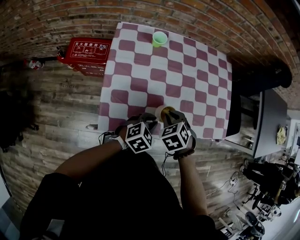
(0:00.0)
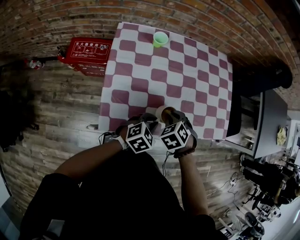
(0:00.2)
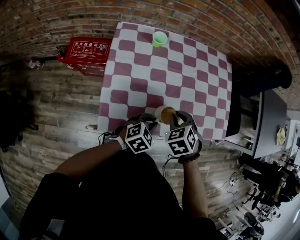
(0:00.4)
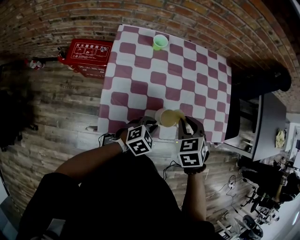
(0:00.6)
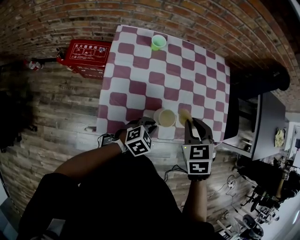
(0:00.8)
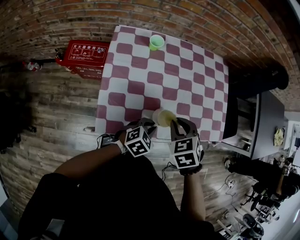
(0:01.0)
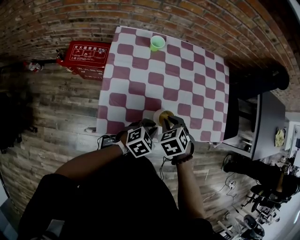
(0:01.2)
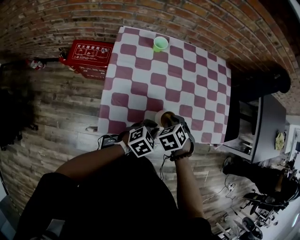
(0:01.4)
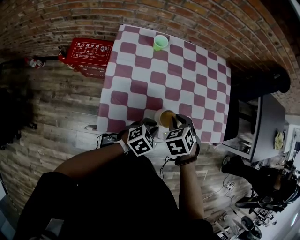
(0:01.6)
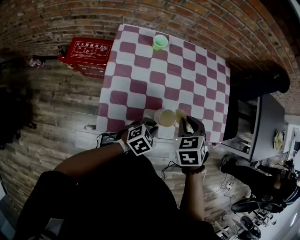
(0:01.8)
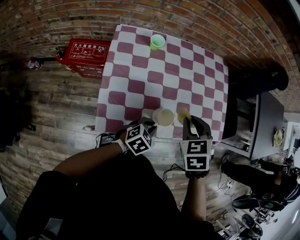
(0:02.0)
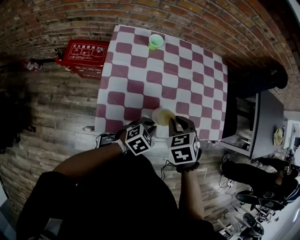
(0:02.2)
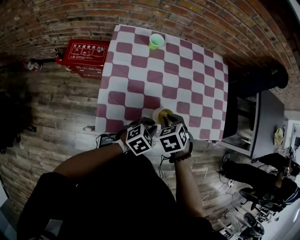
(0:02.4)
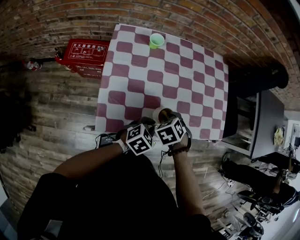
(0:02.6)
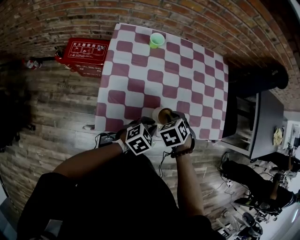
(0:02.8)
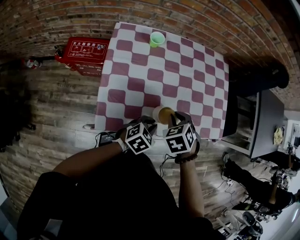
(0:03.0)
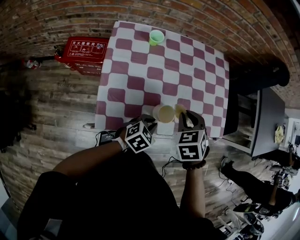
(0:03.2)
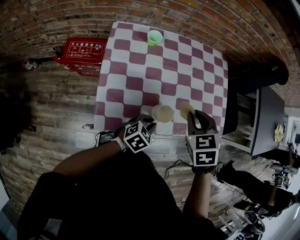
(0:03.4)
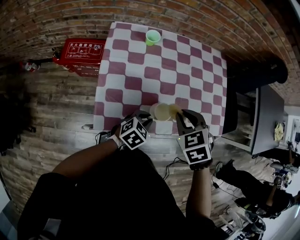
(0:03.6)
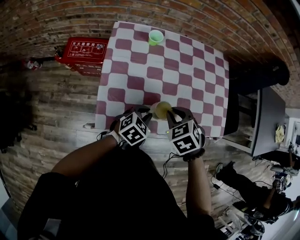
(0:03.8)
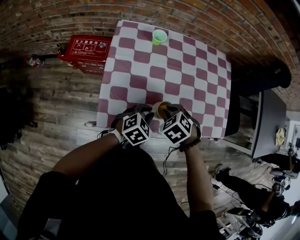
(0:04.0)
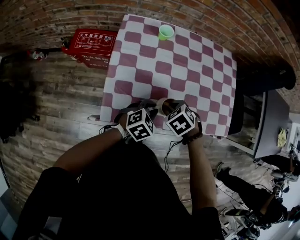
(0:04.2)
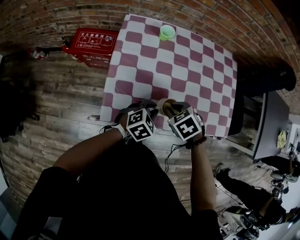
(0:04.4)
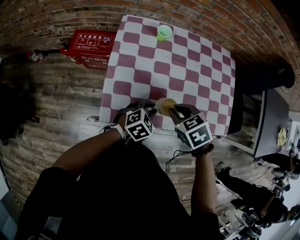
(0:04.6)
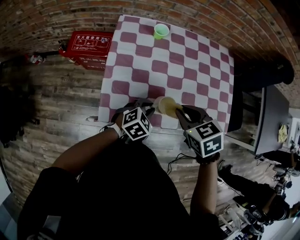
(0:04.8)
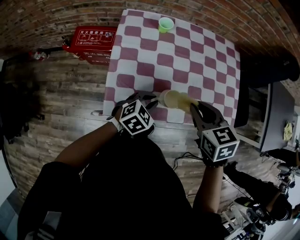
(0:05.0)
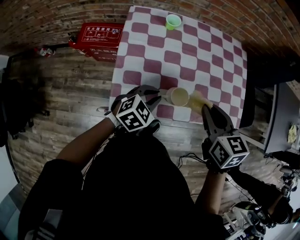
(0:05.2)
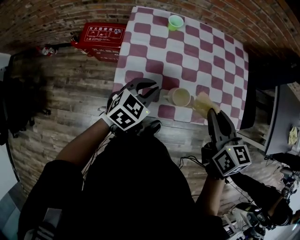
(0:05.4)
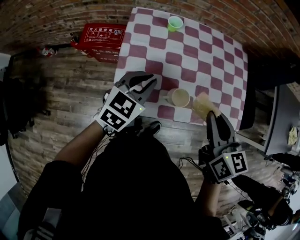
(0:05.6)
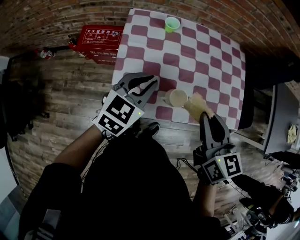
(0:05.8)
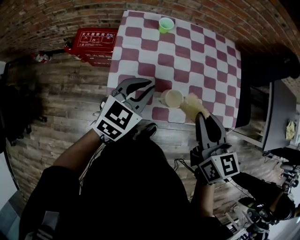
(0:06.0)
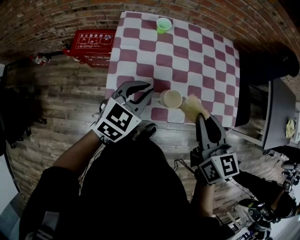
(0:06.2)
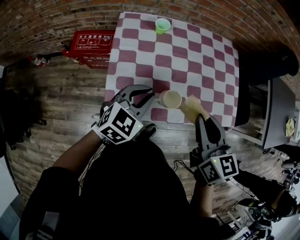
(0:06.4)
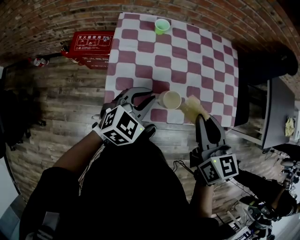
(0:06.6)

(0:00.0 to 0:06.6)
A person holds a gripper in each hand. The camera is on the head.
0:00.0 - 0:01.6: The right gripper swings up and down, about 15 cm each way, with 2 reversals.
0:01.6 - 0:03.2: The right gripper goes up and down, about 15 cm each way, reversing 2 times.
0:03.2 - 0:05.0: The left gripper ends up about 5 cm from where it was. The right gripper goes up and down, approximately 15 cm each way, reversing 2 times, and turns by some 30 degrees.
0:05.0 - 0:06.6: The right gripper goes about 5 cm upward, and swivels roughly 30 degrees; the left gripper moves upward, about 10 cm.

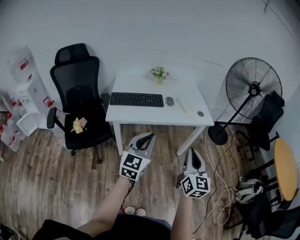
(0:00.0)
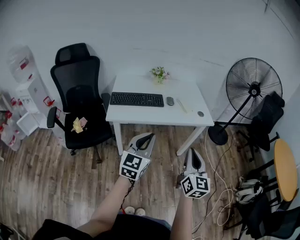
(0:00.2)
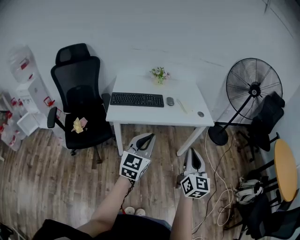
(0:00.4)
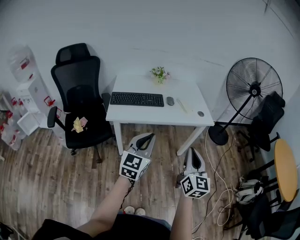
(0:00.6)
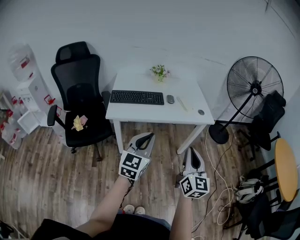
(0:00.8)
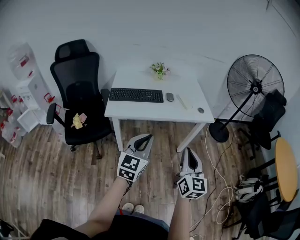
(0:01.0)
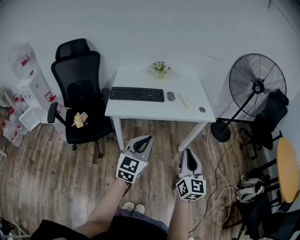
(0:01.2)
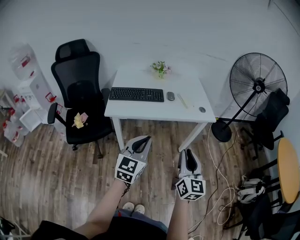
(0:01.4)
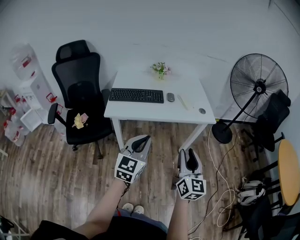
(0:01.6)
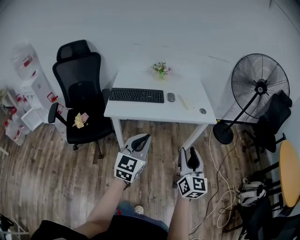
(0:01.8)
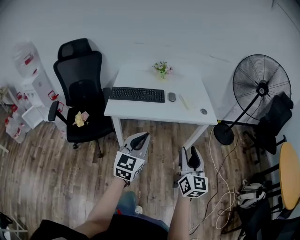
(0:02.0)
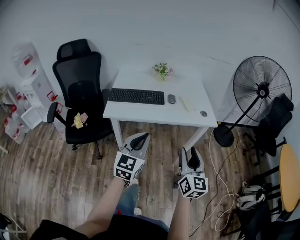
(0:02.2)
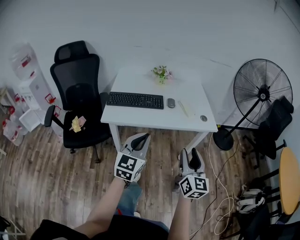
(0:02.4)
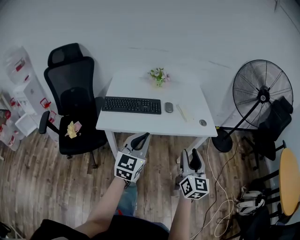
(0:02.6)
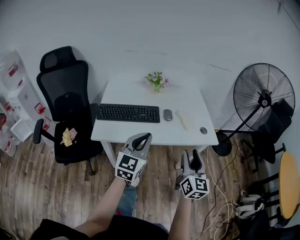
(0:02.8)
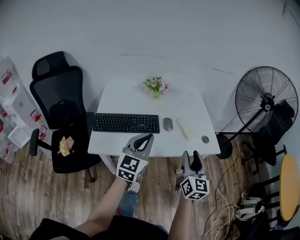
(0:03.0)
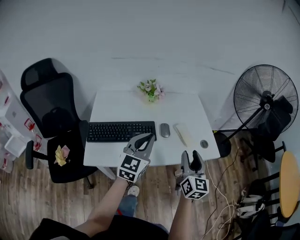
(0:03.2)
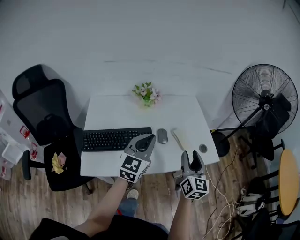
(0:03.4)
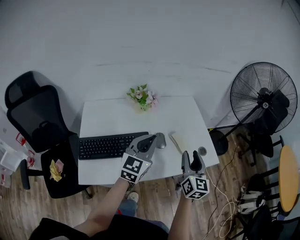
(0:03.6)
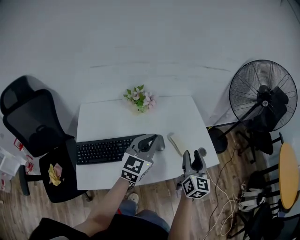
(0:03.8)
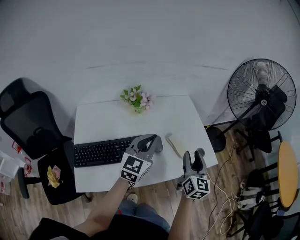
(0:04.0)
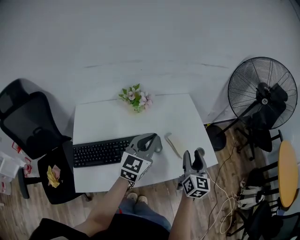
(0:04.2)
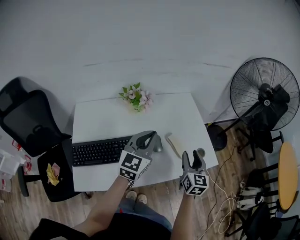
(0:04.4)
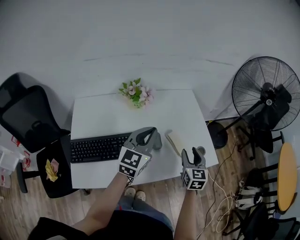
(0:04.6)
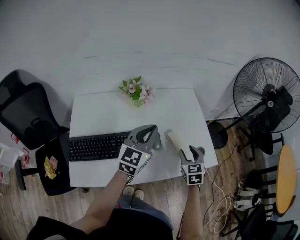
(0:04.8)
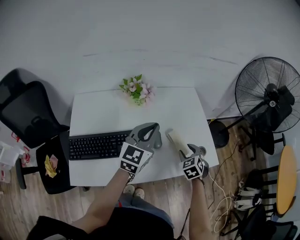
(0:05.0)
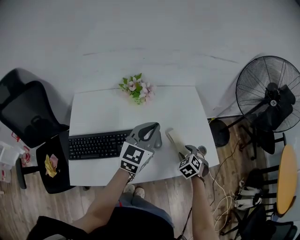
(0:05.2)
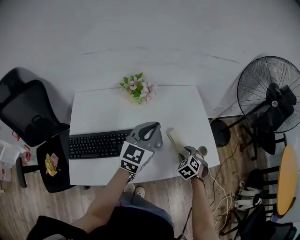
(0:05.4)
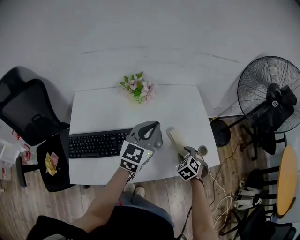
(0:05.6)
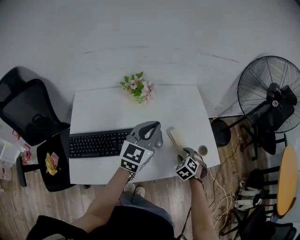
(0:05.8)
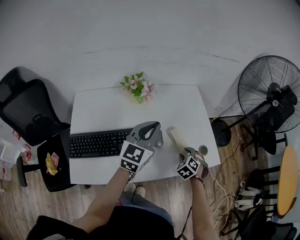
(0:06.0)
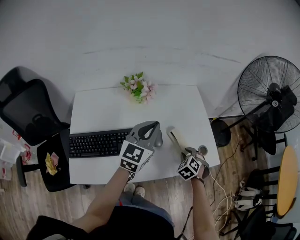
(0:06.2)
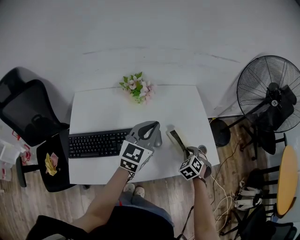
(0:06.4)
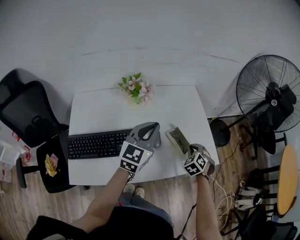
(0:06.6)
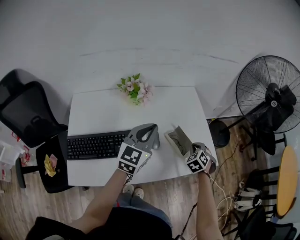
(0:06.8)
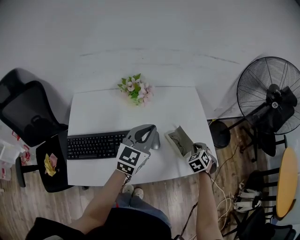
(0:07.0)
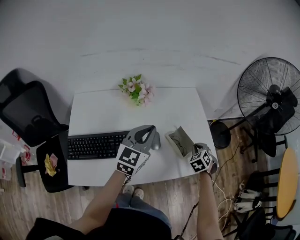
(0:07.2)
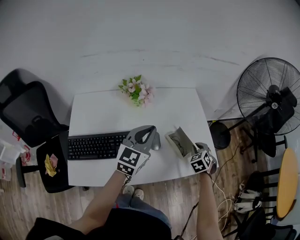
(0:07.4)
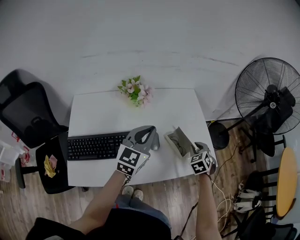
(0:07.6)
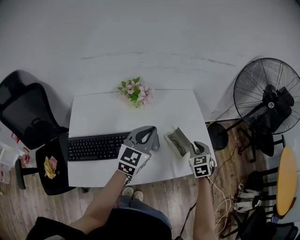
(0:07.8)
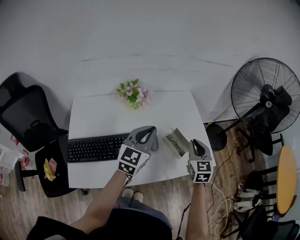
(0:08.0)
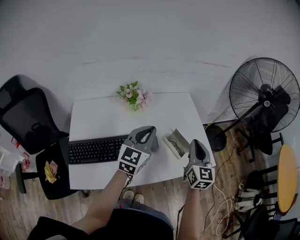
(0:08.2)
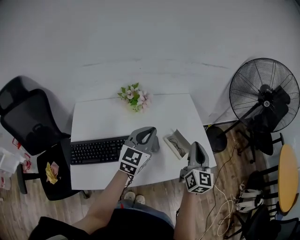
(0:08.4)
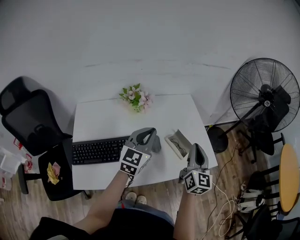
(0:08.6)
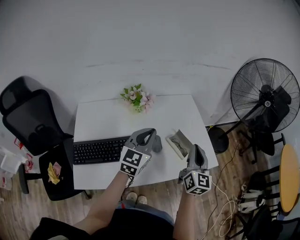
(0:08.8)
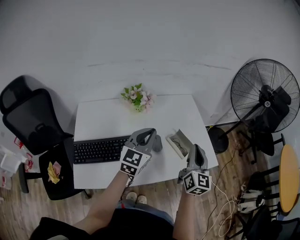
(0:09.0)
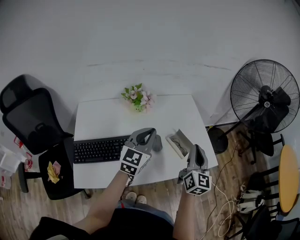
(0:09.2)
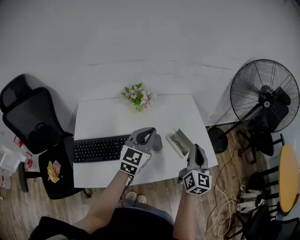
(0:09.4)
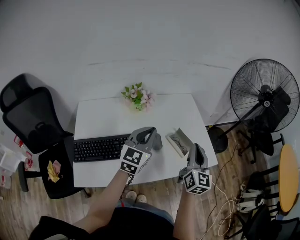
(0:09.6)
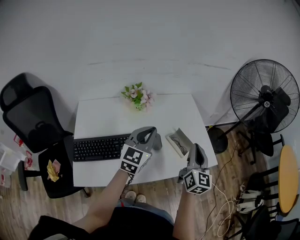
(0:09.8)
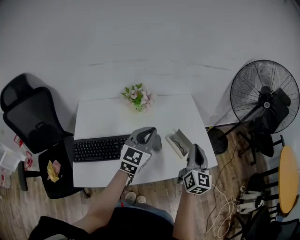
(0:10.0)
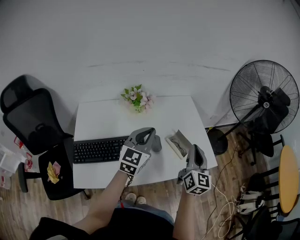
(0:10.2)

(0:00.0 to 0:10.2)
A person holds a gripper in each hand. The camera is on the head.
0:00.0 - 0:01.4: The grippers make only small movements.
0:01.4 - 0:03.0: Both grippers travel together forward, roughly 30 cm. The right gripper opens up.
0:03.0 - 0:04.4: The grippers both shift forward by some 25 cm.
0:04.4 - 0:05.8: The right gripper shifts approximately 15 cm downward, and points its fingers approximately 50 degrees further downward.
0:05.8 - 0:07.2: The right gripper travels forward and to the right by roughly 10 cm, and closes its fingers.
0:07.2 - 0:08.8: The right gripper goes about 20 cm upward and backward, and angles its fingers upward, by some 50 degrees.
0:08.8 - 0:10.2: Neither gripper changes place.

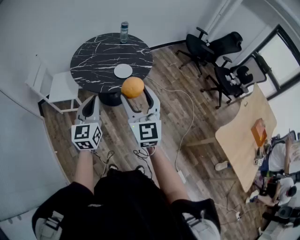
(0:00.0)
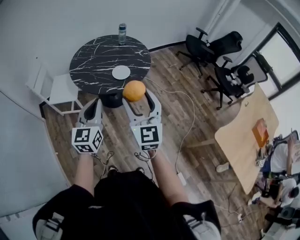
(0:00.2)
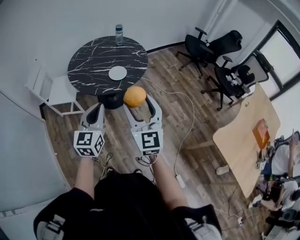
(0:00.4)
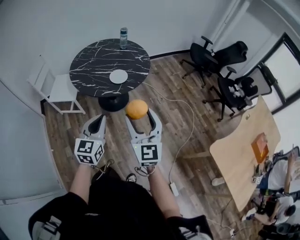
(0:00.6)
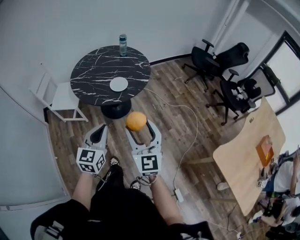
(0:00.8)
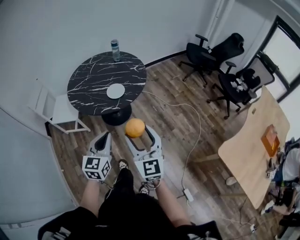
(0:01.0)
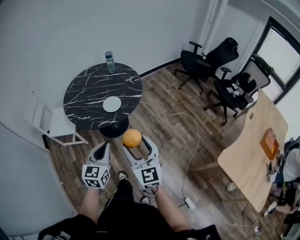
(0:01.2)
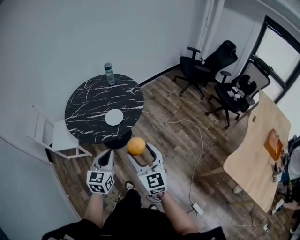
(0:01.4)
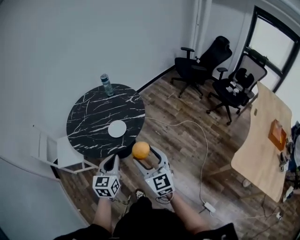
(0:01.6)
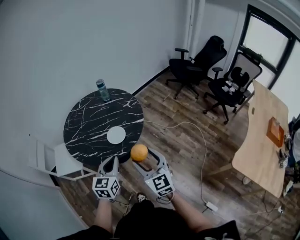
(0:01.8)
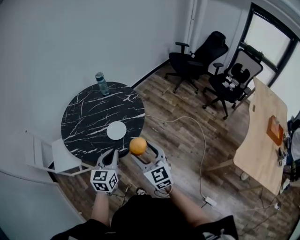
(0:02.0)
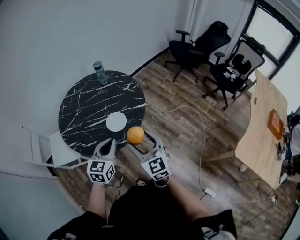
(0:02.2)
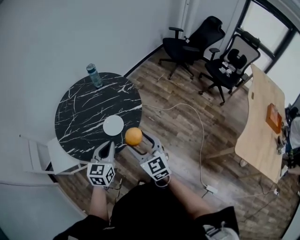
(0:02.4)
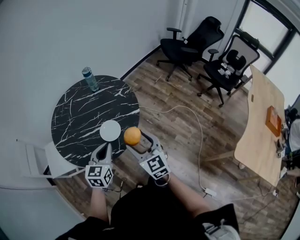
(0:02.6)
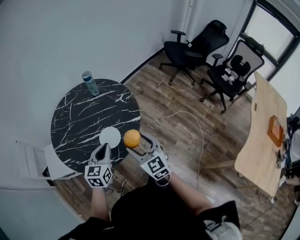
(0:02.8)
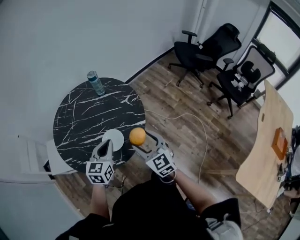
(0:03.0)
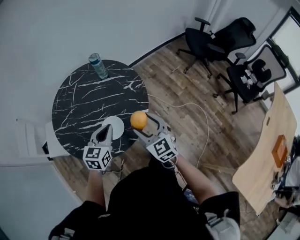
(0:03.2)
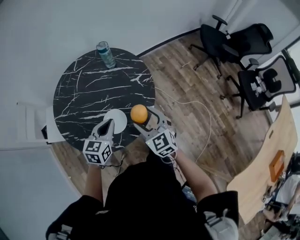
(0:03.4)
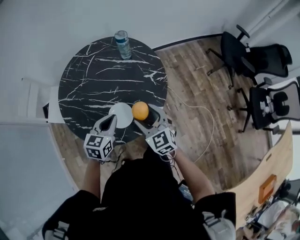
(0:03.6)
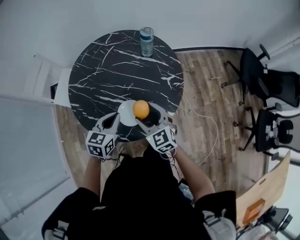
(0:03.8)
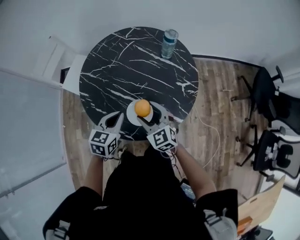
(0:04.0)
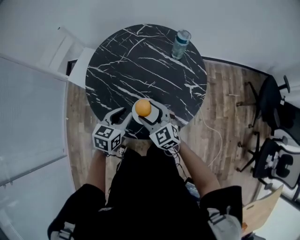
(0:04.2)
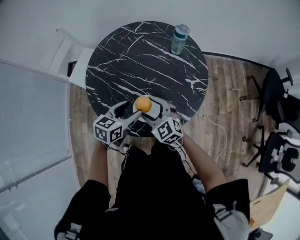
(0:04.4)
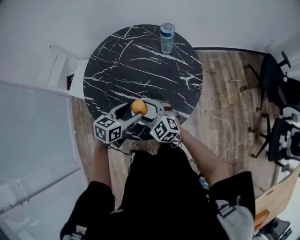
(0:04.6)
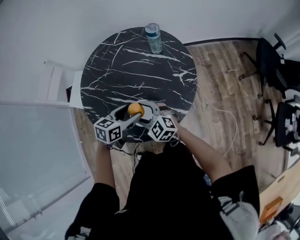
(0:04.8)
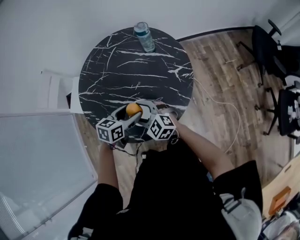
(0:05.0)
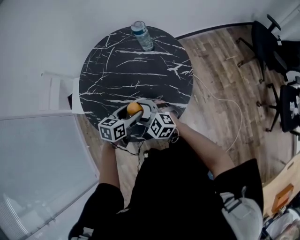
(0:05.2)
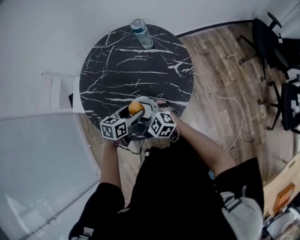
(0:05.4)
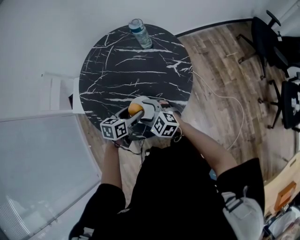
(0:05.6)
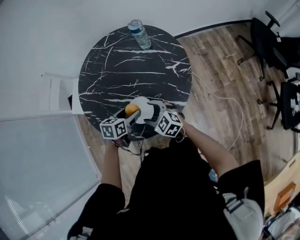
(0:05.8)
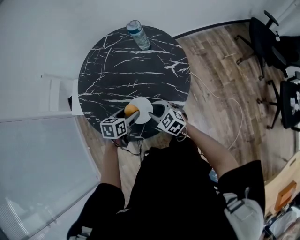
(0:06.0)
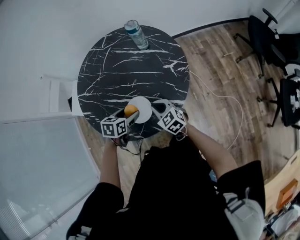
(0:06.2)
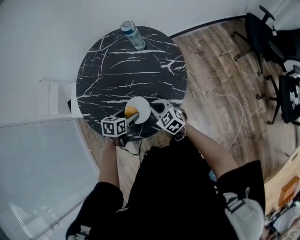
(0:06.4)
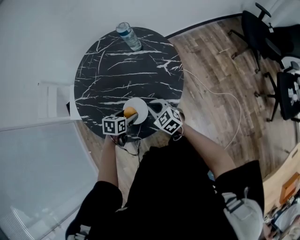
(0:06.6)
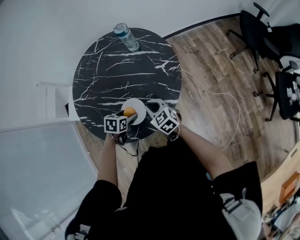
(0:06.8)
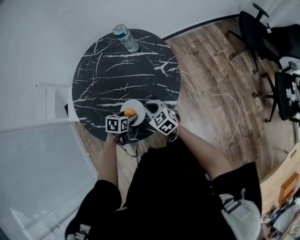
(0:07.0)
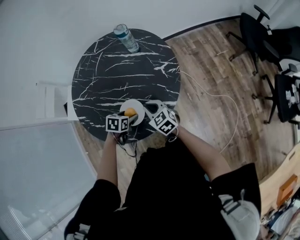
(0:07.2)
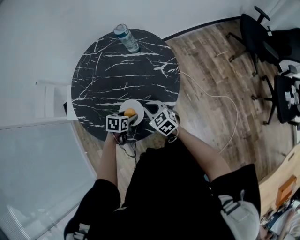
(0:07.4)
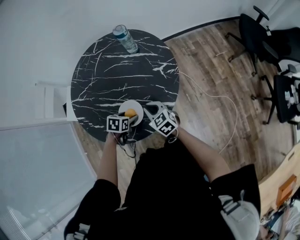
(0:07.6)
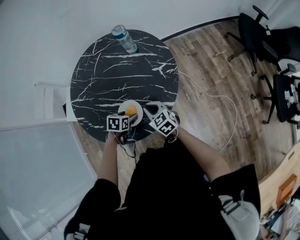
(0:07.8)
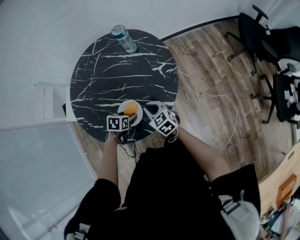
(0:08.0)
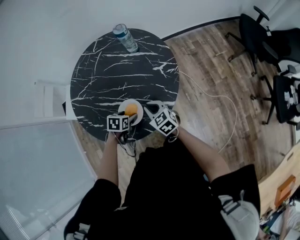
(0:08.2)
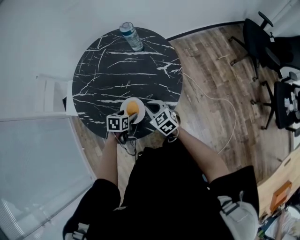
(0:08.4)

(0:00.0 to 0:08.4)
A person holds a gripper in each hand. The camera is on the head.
0:00.0 - 0:01.4: The right gripper is displaced to the right and downward by about 15 cm. The left gripper is displaced to the right, downward and forward by approximately 20 cm.
0:01.4 - 0:02.8: Both grippers travel together forward, about 25 cm.
0:02.8 - 0:04.2: The left gripper ends up approximately 15 cm from where it was, and turns by some 30 degrees; the right gripper changes place by about 25 cm, and swivels approximately 50 degrees.
0:04.2 - 0:05.6: The left gripper goes roughly 10 cm downward and to the right, turns by some 20 degrees, and opens. Meanwhile the right gripper travels downward by about 5 cm.
0:05.6 - 0:07.0: The right gripper shifts some 10 cm to the right, changes its angle by about 30 degrees, and closes. The left gripper heads downward, covering approximately 10 cm, and swivels some 20 degrees.
0:07.0 - 0:08.4: The grippers stay close to where they were, moving slightly.
